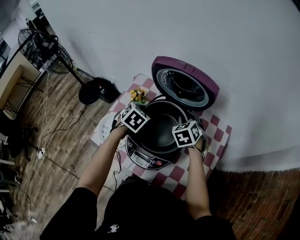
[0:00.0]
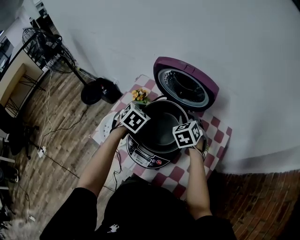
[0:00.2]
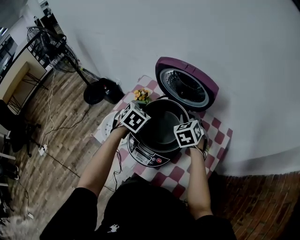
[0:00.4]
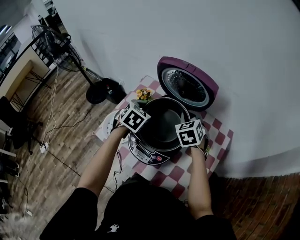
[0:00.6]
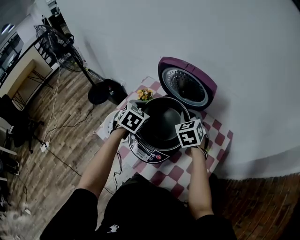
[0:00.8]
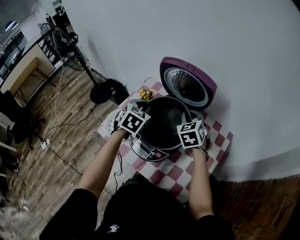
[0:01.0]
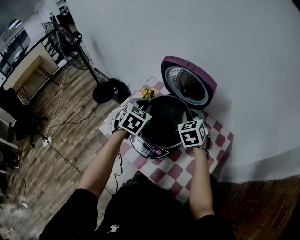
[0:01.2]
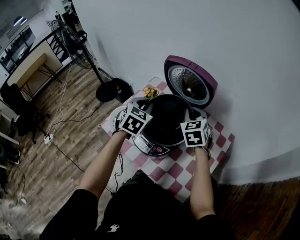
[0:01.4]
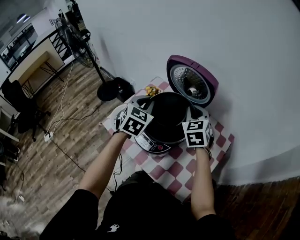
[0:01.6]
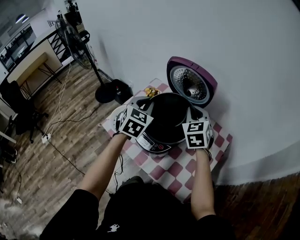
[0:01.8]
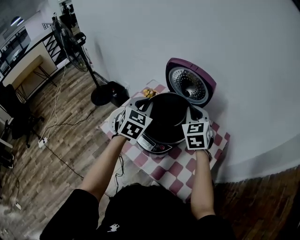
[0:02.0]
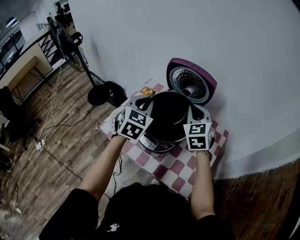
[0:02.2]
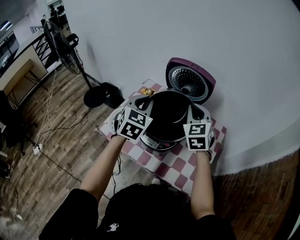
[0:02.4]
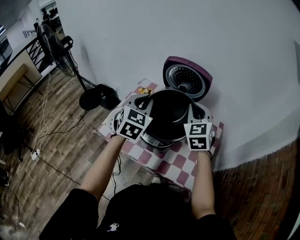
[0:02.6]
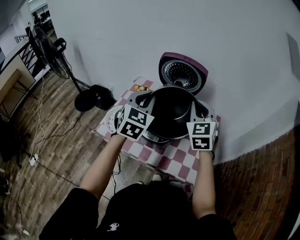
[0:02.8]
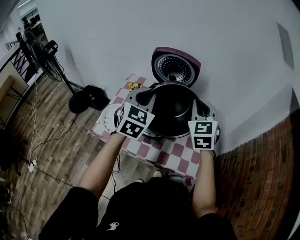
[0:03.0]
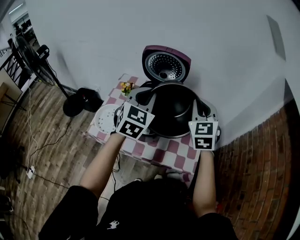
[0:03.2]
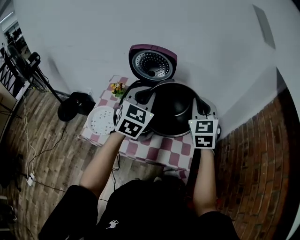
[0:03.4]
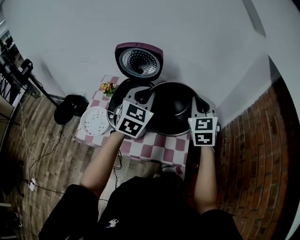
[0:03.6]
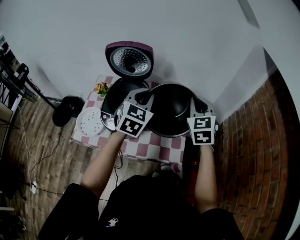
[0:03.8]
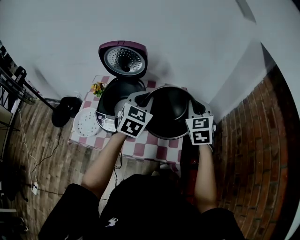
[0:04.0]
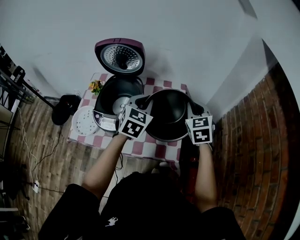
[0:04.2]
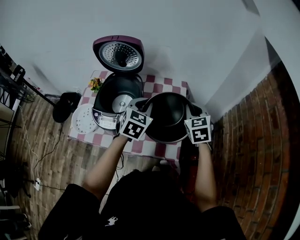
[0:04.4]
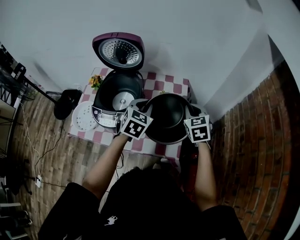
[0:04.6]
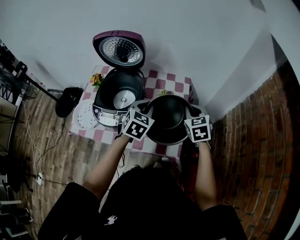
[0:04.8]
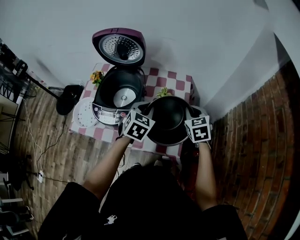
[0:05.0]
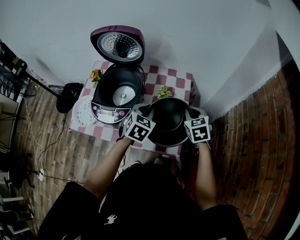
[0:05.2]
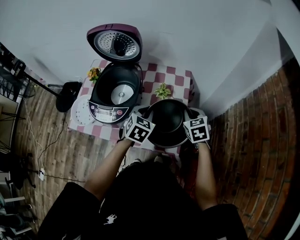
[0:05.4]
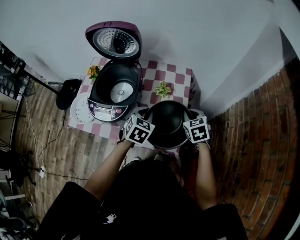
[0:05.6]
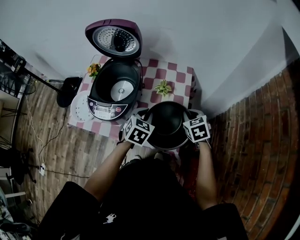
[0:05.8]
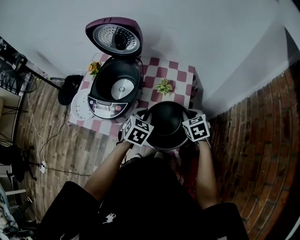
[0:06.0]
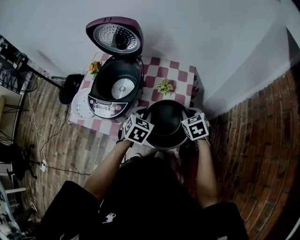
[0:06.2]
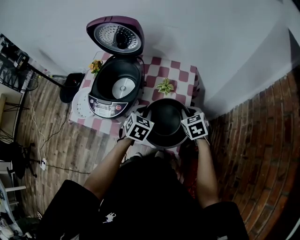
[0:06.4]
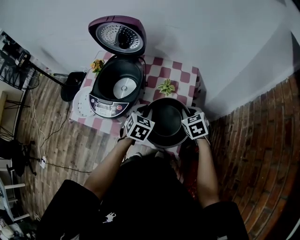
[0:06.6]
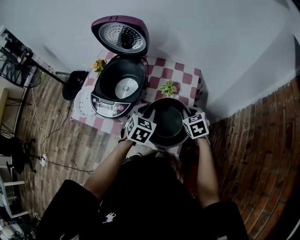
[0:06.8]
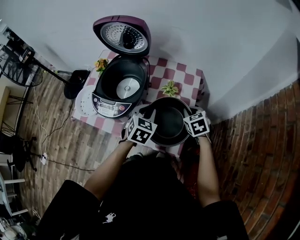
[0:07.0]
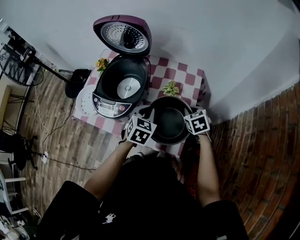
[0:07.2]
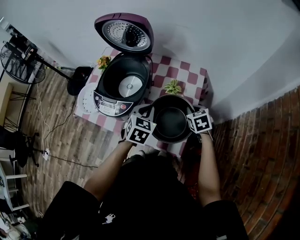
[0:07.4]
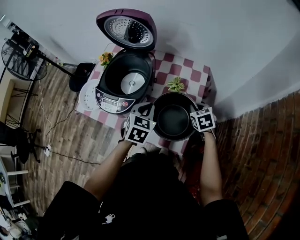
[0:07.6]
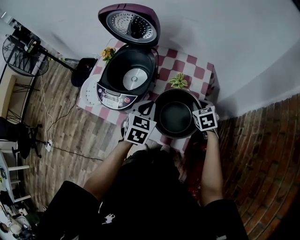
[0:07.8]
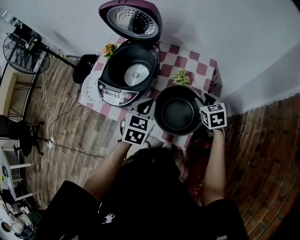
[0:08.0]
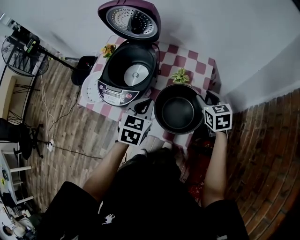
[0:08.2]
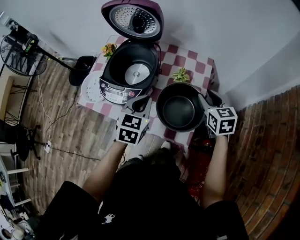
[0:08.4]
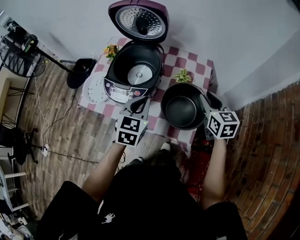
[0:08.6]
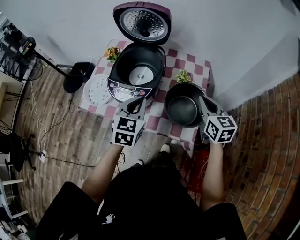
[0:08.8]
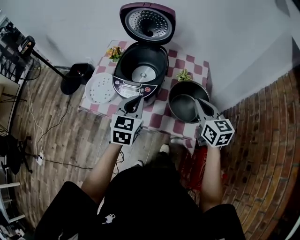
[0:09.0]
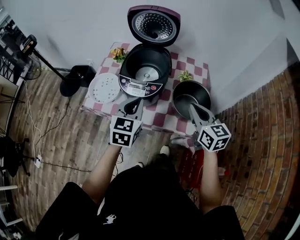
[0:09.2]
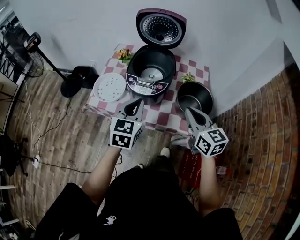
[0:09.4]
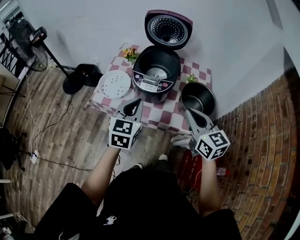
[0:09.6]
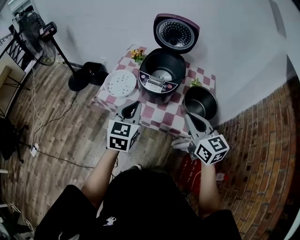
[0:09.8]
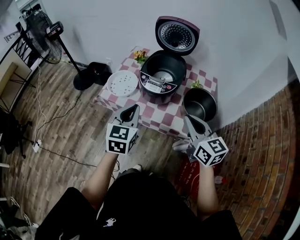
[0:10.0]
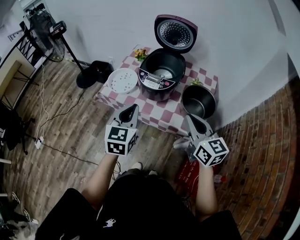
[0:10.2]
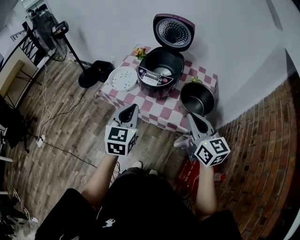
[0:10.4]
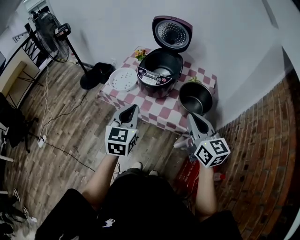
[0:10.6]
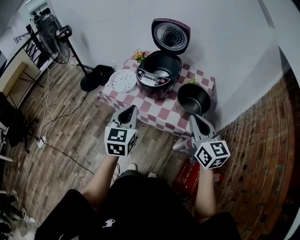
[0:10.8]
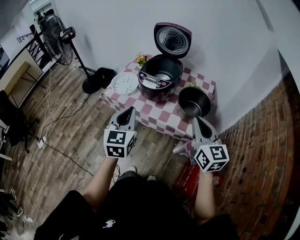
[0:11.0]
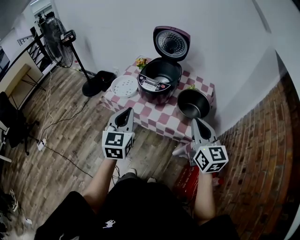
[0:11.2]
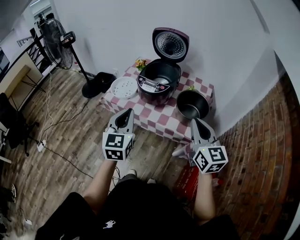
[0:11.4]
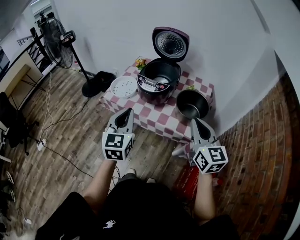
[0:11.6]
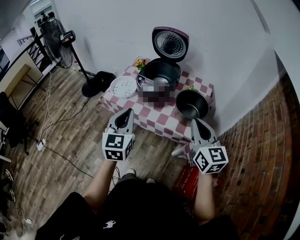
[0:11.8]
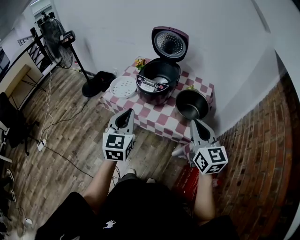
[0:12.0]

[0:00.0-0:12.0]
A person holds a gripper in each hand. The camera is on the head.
0:00.0 to 0:01.6: Both grippers travel together upward and backward, about 15 cm. The left gripper changes its angle by roughly 30 degrees. Meanwhile the right gripper turns by some 20 degrees, and closes.
0:01.6 to 0:03.0: The grippers both shift backward and upward by roughly 15 cm. The right gripper swivels some 20 degrees. Meanwhile the left gripper swivels roughly 20 degrees.
0:03.0 to 0:04.4: The grippers both shift to the right and downward by about 25 cm. The left gripper rotates about 20 degrees. Meanwhile the right gripper swivels some 20 degrees.
0:04.4 to 0:06.0: The grippers both shift downward by approximately 15 cm. The right gripper rotates roughly 20 degrees.
0:06.0 to 0:07.6: The right gripper is displaced forward by some 5 cm.
0:07.6 to 0:09.0: The left gripper shifts some 20 cm to the left, upward and backward, while the right gripper shifts approximately 25 cm upward, backward and to the left, tilts its fingers approximately 30 degrees upward, and opens, then closes once more.
0:09.0 to 0:10.4: The right gripper shifts roughly 20 cm backward, to the left and upward. Meanwhile the left gripper is displaced backward and to the left by roughly 20 cm.
0:10.4 to 0:12.0: The left gripper moves about 5 cm. Meanwhile the right gripper moves some 5 cm.

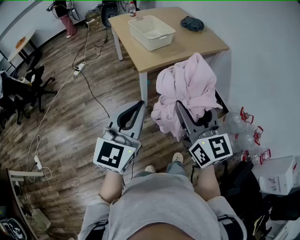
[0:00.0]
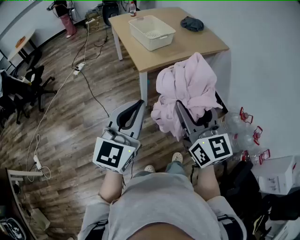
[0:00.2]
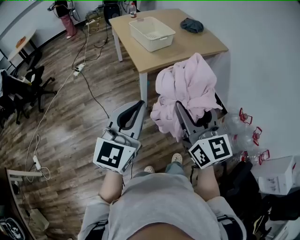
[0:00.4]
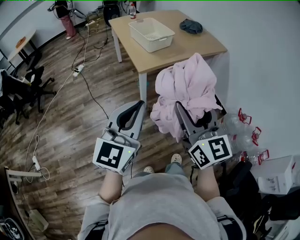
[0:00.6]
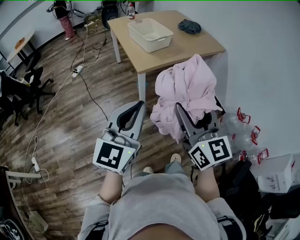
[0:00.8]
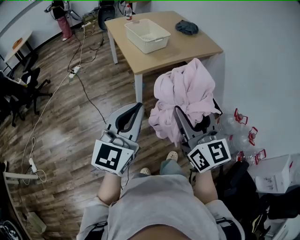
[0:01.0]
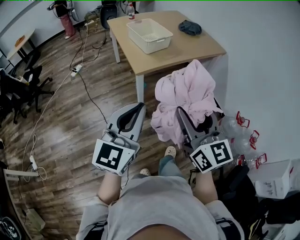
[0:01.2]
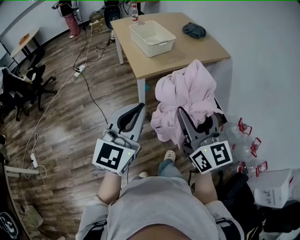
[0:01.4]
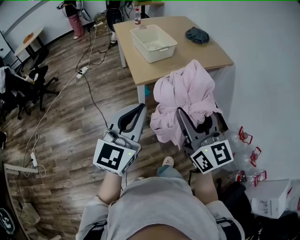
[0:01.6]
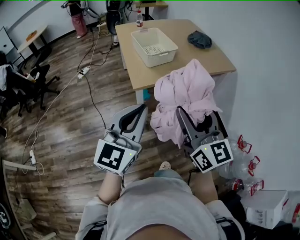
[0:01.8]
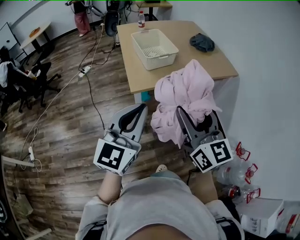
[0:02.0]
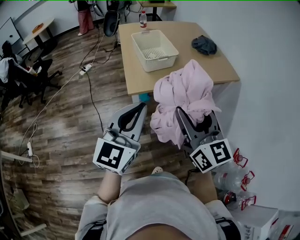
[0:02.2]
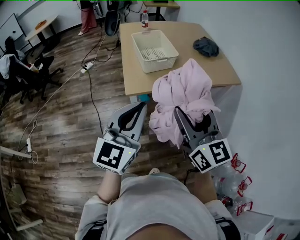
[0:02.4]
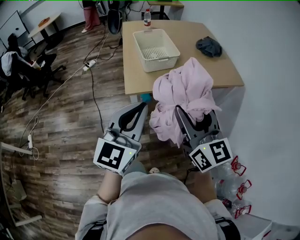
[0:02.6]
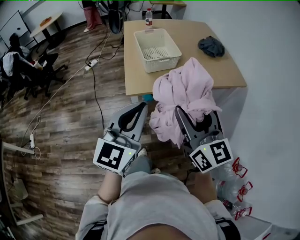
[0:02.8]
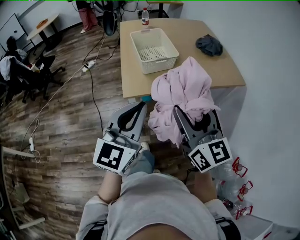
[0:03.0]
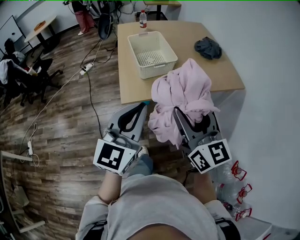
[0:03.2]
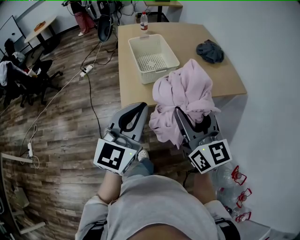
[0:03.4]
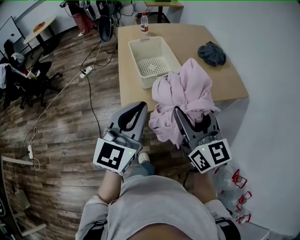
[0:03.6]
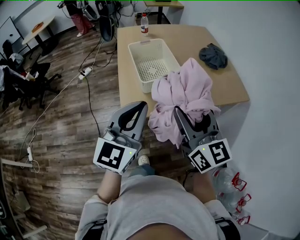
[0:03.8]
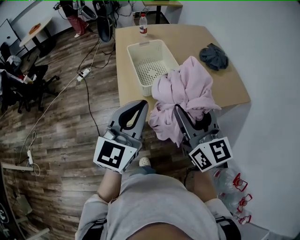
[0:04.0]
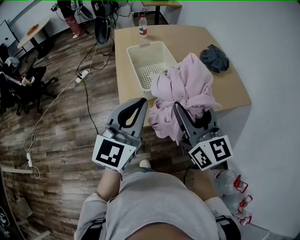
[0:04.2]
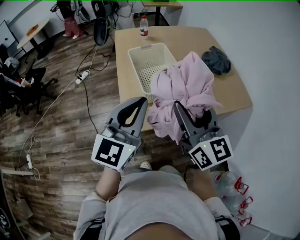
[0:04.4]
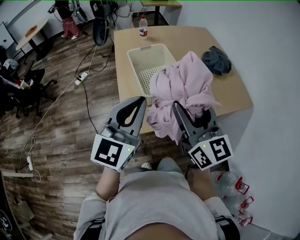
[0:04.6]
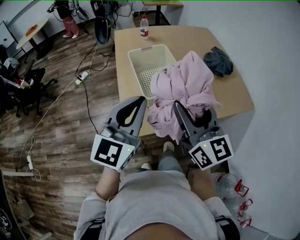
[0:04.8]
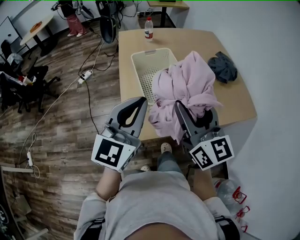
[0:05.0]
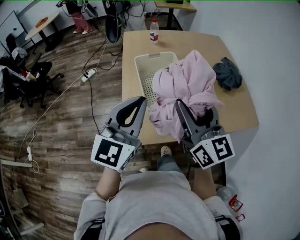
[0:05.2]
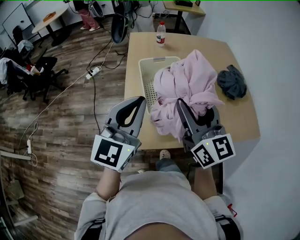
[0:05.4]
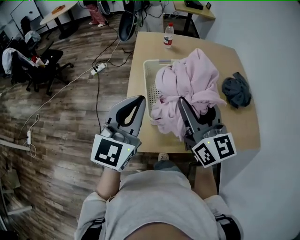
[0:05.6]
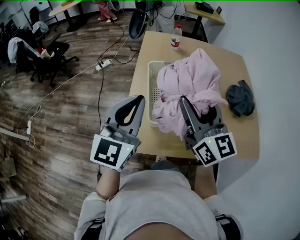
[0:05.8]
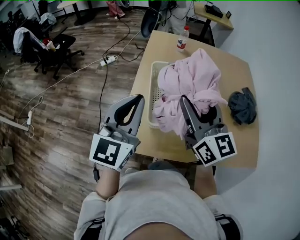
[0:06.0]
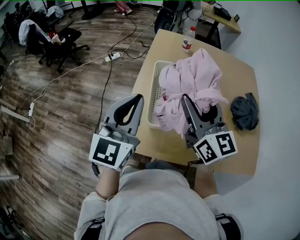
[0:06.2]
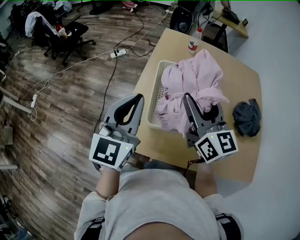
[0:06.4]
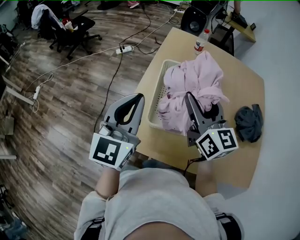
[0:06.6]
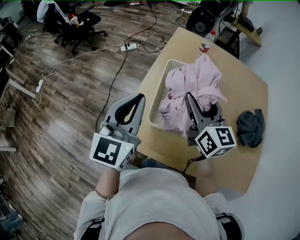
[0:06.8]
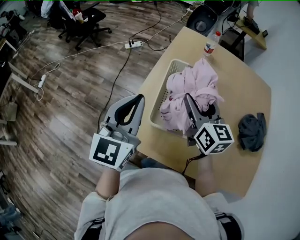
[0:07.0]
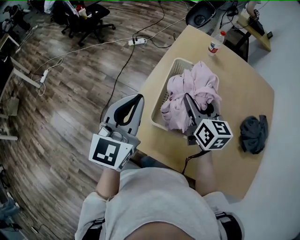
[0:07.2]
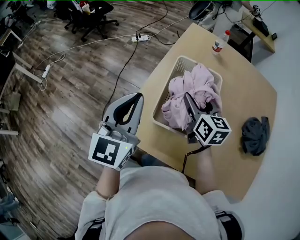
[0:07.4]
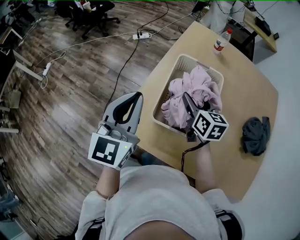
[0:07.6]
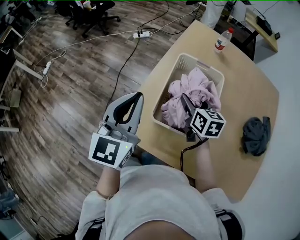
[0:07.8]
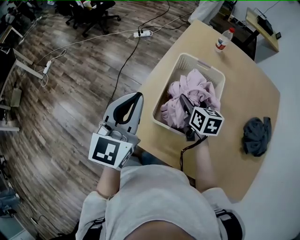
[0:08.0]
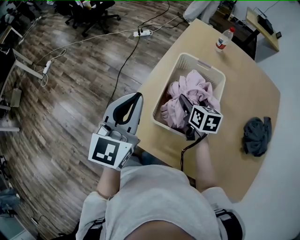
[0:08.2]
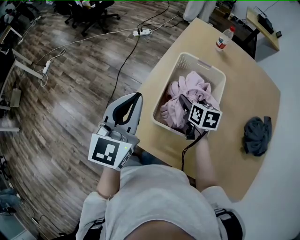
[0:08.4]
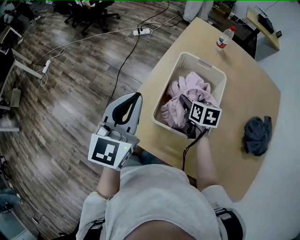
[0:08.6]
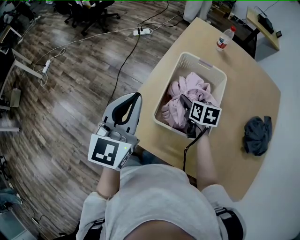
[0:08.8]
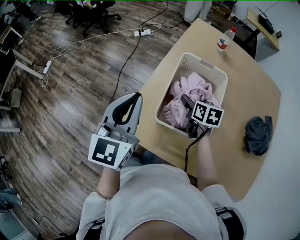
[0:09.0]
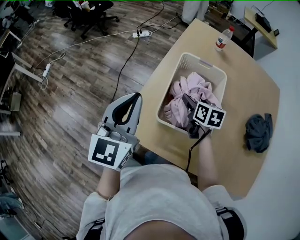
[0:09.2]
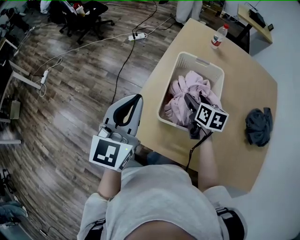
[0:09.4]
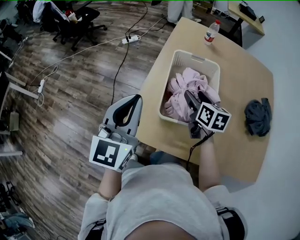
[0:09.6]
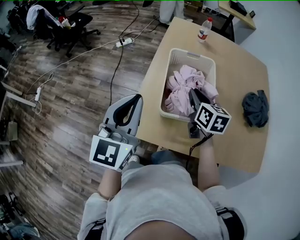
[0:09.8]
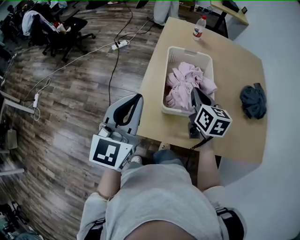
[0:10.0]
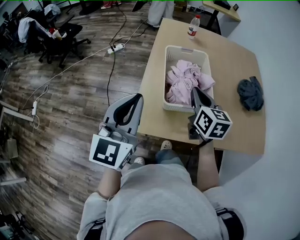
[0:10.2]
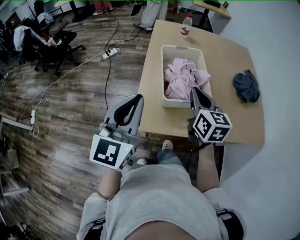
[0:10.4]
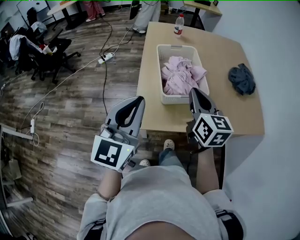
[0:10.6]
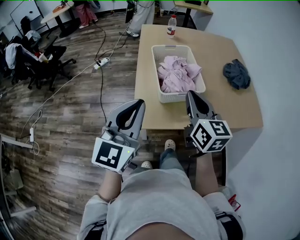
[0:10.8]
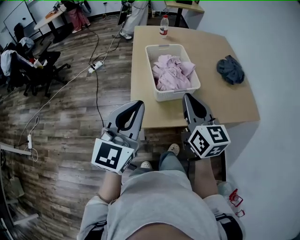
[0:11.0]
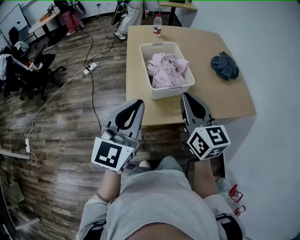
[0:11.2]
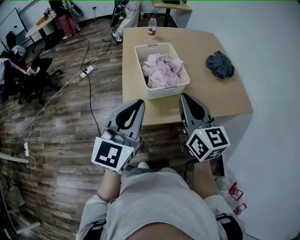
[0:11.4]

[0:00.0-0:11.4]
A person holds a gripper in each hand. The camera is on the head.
0:00.0 to 0:01.4: There are only small adjustments of the grippers.
0:01.4 to 0:02.8: The grippers both shift forward and to the right by some 25 cm.
0:02.8 to 0:04.2: Both grippers travel together forward, approximately 20 cm.
0:04.2 to 0:05.6: Both grippers travel together forward, some 20 cm.
0:05.6 to 0:07.2: The left gripper moves about 5 cm, and turns by some 30 degrees. Meanwhile the right gripper is displaced forward and downward by some 20 cm, and turns by some 30 degrees.
0:07.2 to 0:08.6: The right gripper travels downward by about 15 cm, and swivels roughly 30 degrees.
0:08.6 to 0:10.0: The right gripper heads upward and backward, covering approximately 15 cm, rotates roughly 30 degrees, and closes up. The left gripper goes some 5 cm backward.
0:10.0 to 0:11.4: The right gripper moves backward and upward, some 25 cm, and changes its angle by approximately 20 degrees. The left gripper moves backward, some 15 cm, and turns by some 30 degrees.
